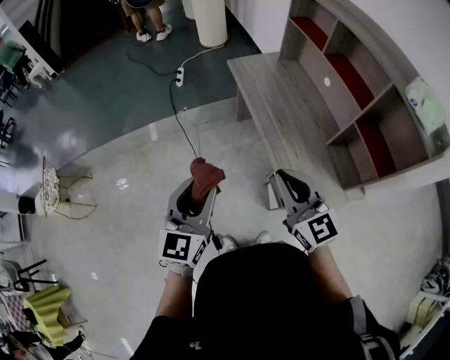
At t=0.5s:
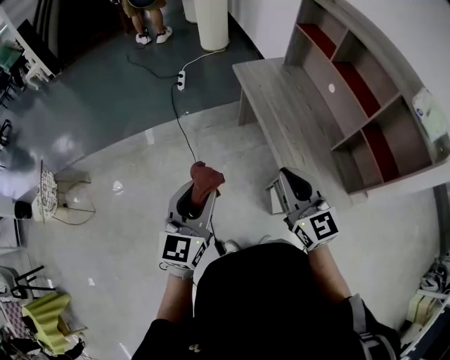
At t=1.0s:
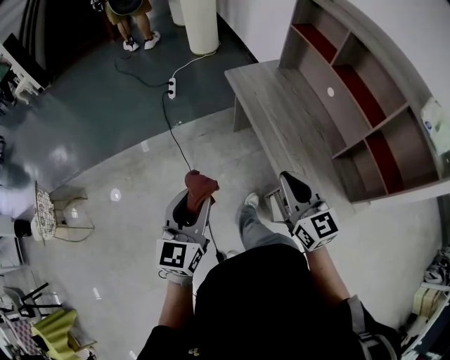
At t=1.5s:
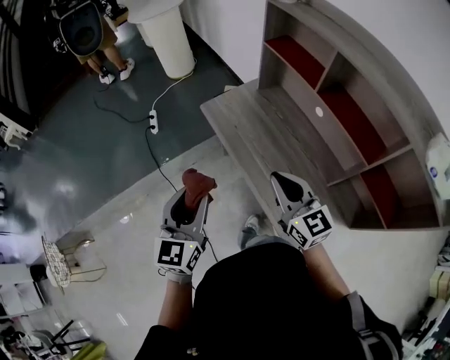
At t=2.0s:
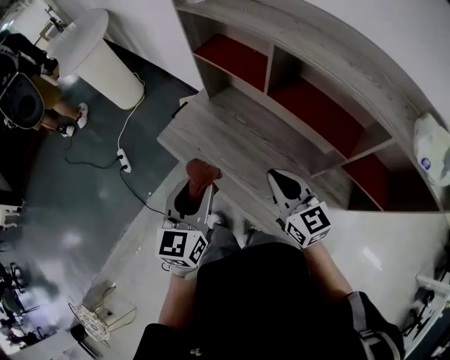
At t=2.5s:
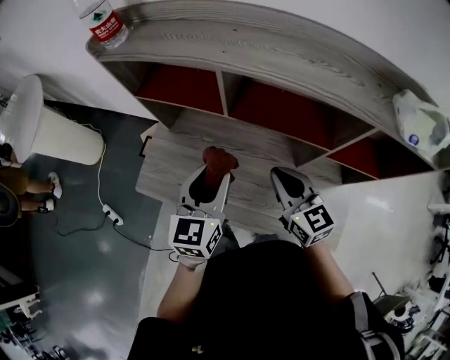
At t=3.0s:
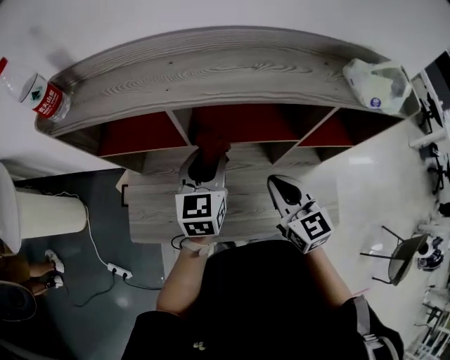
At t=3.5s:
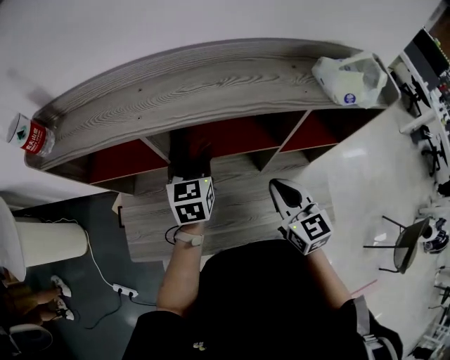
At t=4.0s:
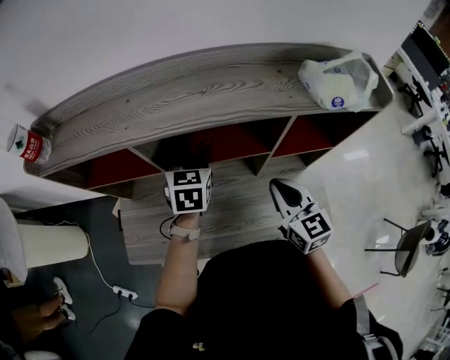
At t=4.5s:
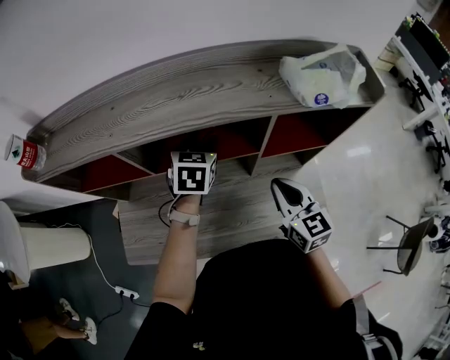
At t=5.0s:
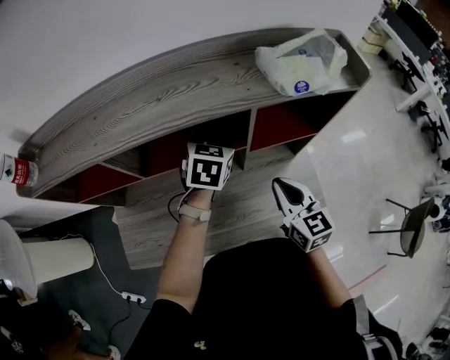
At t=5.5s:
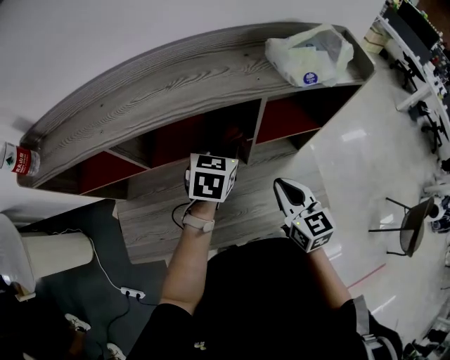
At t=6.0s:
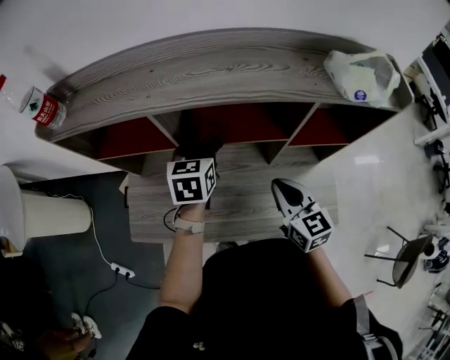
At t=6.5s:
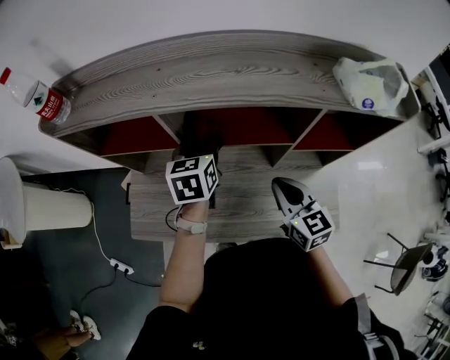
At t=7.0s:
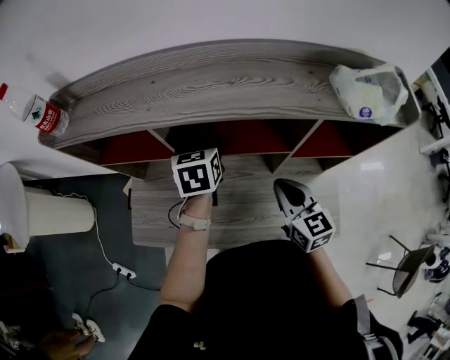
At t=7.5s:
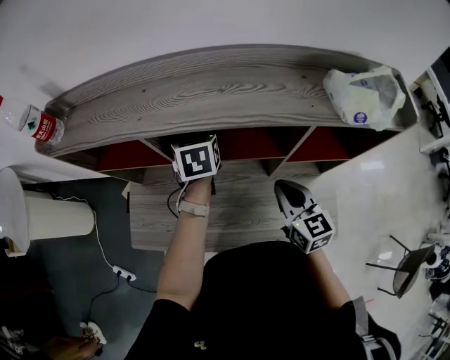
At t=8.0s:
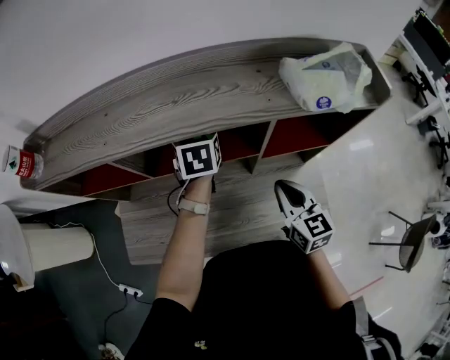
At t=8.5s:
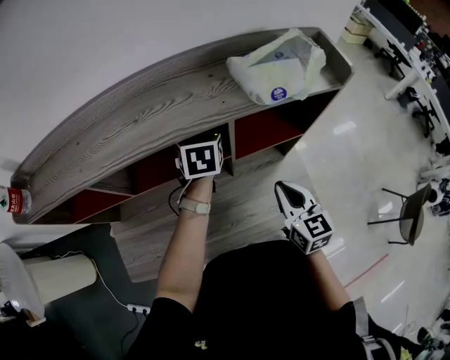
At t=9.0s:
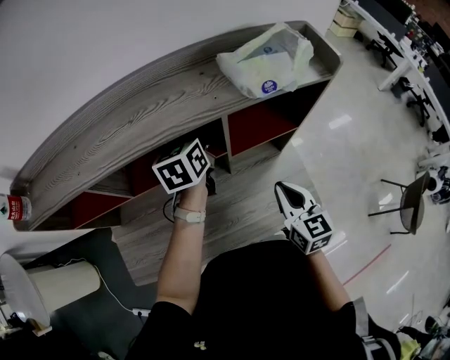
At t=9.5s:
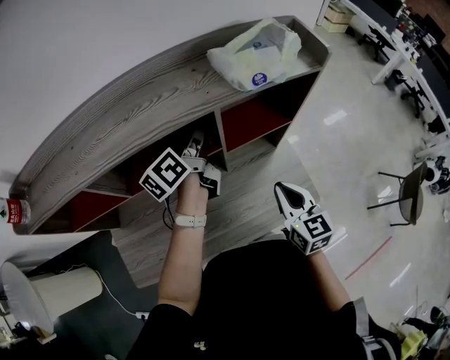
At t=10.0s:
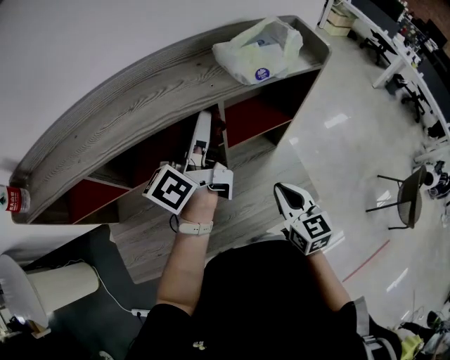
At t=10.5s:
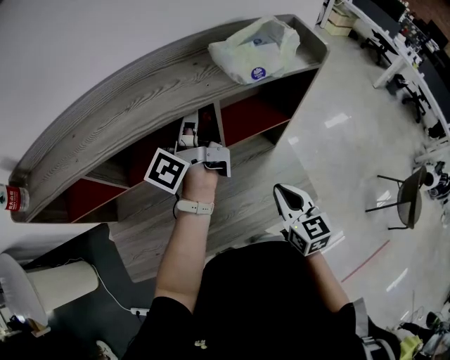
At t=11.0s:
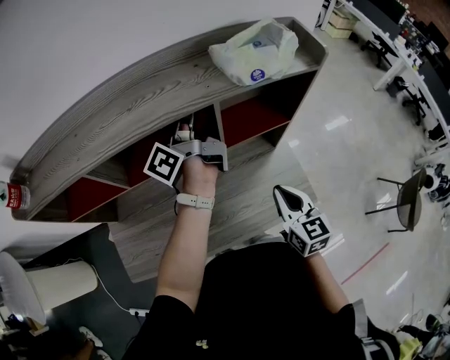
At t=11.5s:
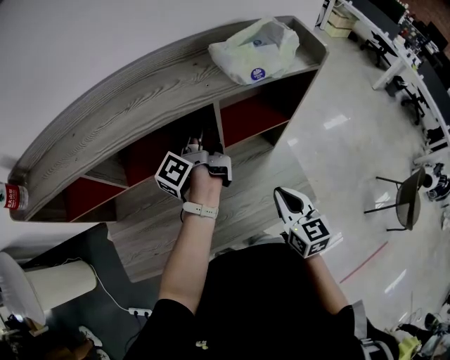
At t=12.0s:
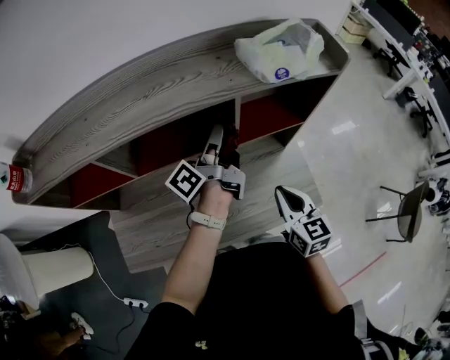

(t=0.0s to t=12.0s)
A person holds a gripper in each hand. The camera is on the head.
t=0.0s - t=2.0s: The left gripper shifts by about 50 cm, and changes its angle by about 30 degrees, while the right gripper changes place by approximately 40 cm, and rotates roughly 30 degrees.
t=2.0s - t=4.0s: The right gripper ends up approximately 15 cm from where it was, and changes its angle by about 50 degrees; the left gripper ends up some 35 cm from where it was, and swivels about 50 degrees.
t=4.0s - t=6.0s: The left gripper goes to the right and returns, approximately 15 cm each way; the right gripper reaches approximately 5 cm to the right, then returns.
t=6.0s - t=8.0s: The right gripper moves to the right, some 10 cm; the left gripper heads to the right and forward, covering about 15 cm.
t=8.0s - t=10.0s: The left gripper is displaced upward, to the right and backward by approximately 20 cm, and tilts its fingers roughly 60 degrees upward; the right gripper moves backward and to the right, approximately 10 cm.
t=10.0s - t=12.0s: The left gripper shifts some 10 cm downward, and turns by about 30 degrees.

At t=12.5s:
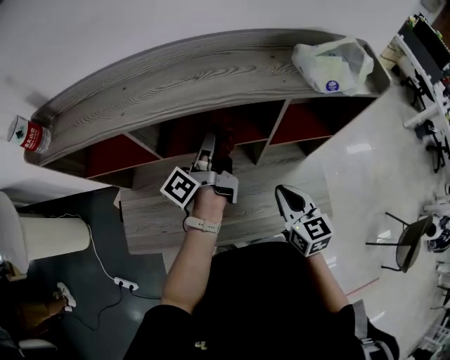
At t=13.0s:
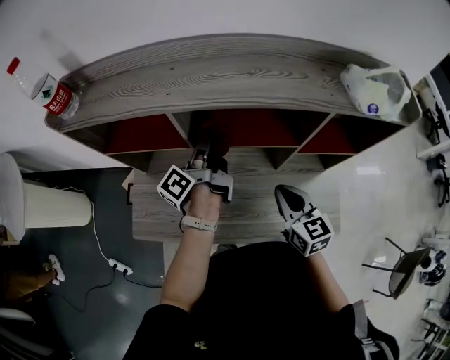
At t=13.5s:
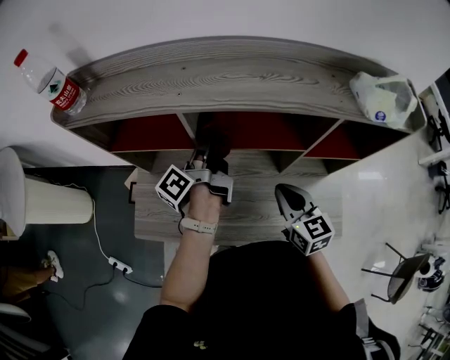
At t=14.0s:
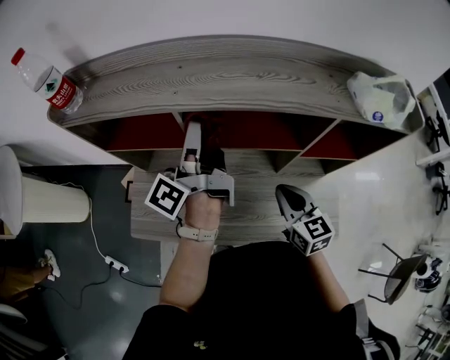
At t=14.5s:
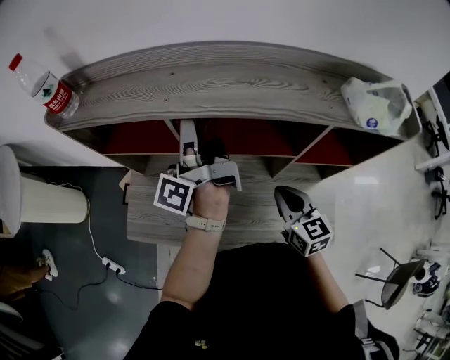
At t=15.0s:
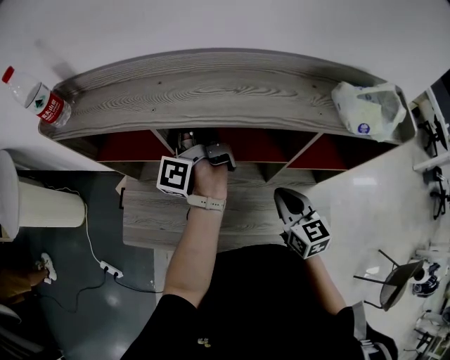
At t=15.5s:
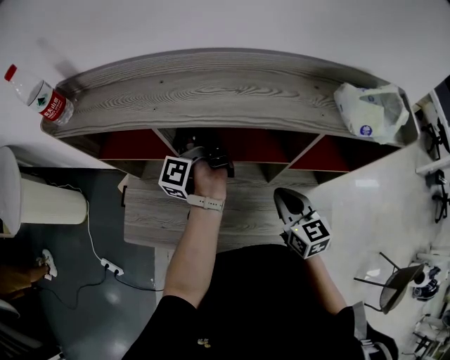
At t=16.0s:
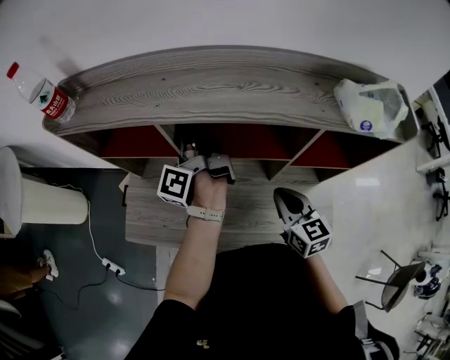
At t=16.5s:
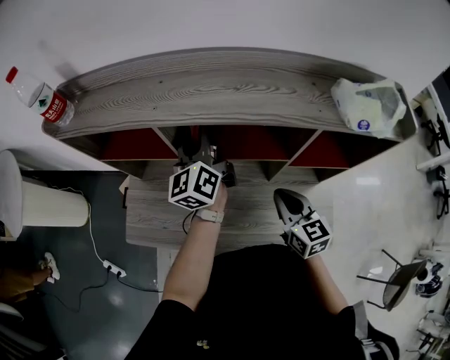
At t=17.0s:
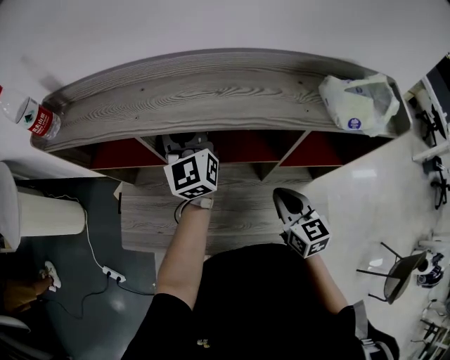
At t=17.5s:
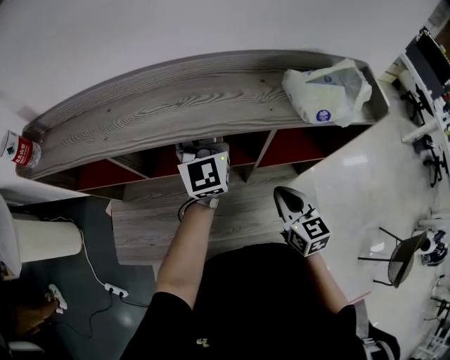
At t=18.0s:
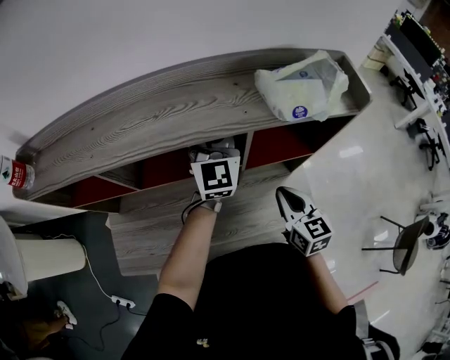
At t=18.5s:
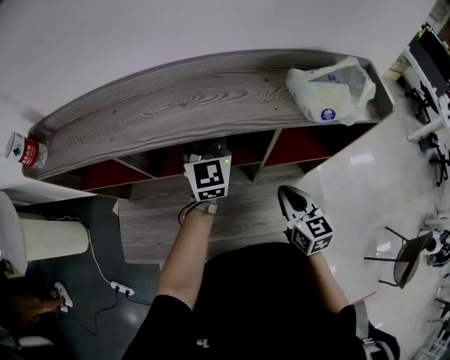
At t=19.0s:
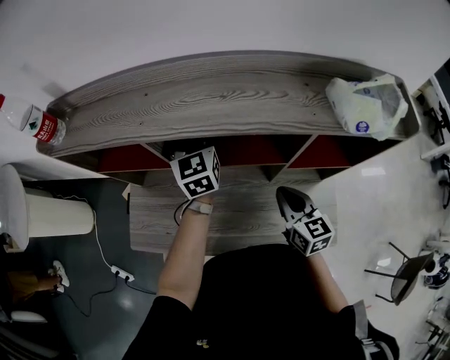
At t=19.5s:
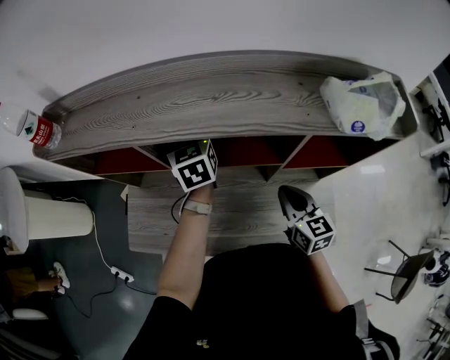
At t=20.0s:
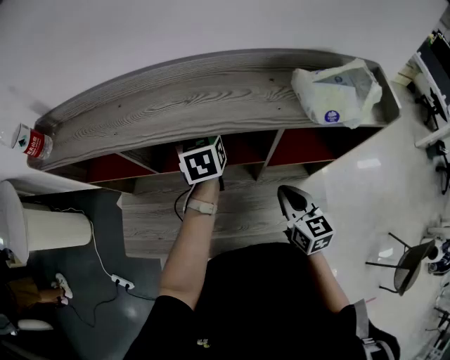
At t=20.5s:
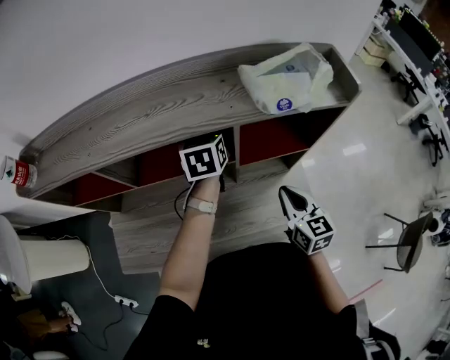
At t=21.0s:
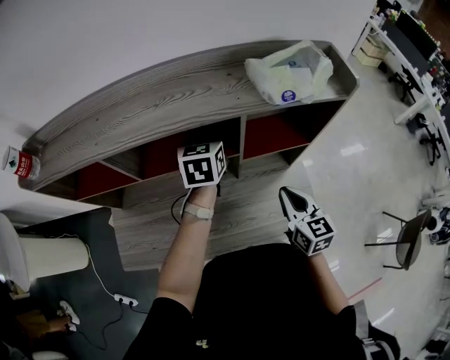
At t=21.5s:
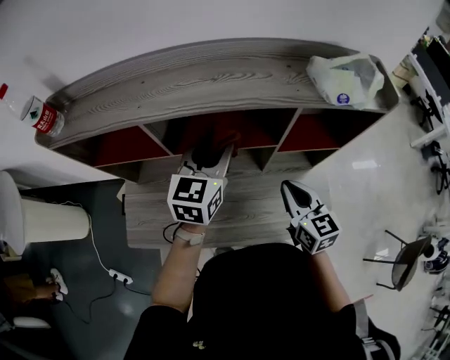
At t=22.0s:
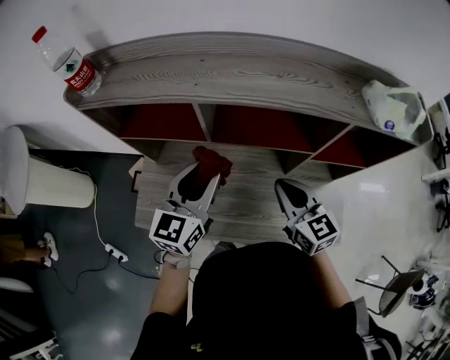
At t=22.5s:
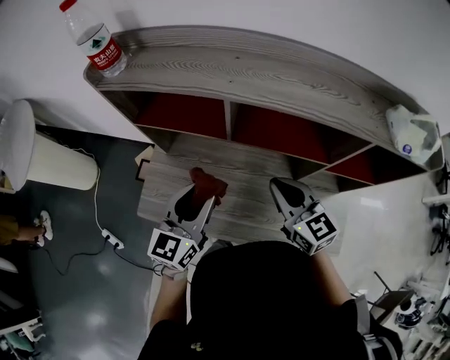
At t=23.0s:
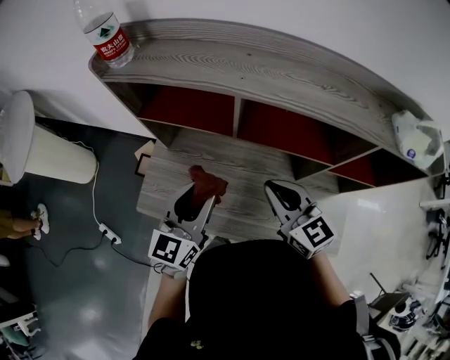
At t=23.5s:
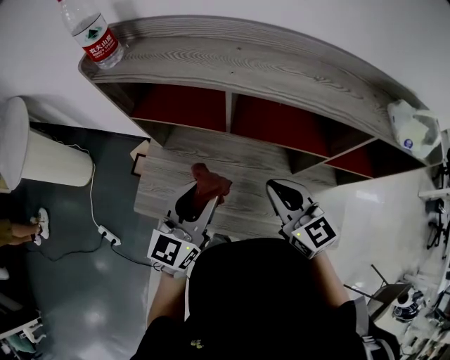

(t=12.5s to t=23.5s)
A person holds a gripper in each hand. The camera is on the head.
t=12.5s - t=14.5s: The left gripper heads to the left and upward, covering about 15 cm, and swivels roughly 30 degrees. The right gripper heads forward, covering approximately 5 cm.
t=14.5s - t=16.0s: The left gripper goes about 10 cm downward.
t=16.0s - t=18.0s: The right gripper moves some 15 cm. Meanwhile the left gripper changes place by roughly 25 cm, and rotates around the line of its fingers by roughly 90 degrees, clockwise from behind.
t=18.0s - t=20.0s: The left gripper shifts some 15 cm to the left and downward, and tips its fingers downward by roughly 40 degrees.
t=20.0s - t=21.5s: The right gripper goes to the right and returns, roughly 5 cm each way; the left gripper travels backward and upward by about 15 cm, and changes its angle by about 30 degrees.
t=21.5s - t=23.5s: The right gripper goes about 20 cm to the left, and turns by about 30 degrees; the left gripper moves to the left and backward, about 25 cm.

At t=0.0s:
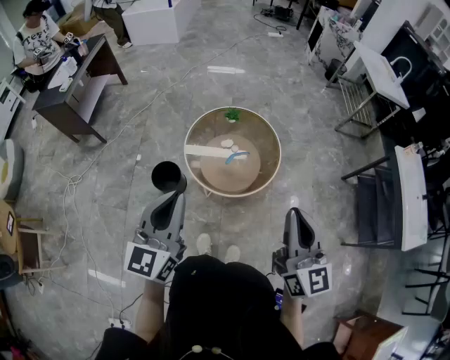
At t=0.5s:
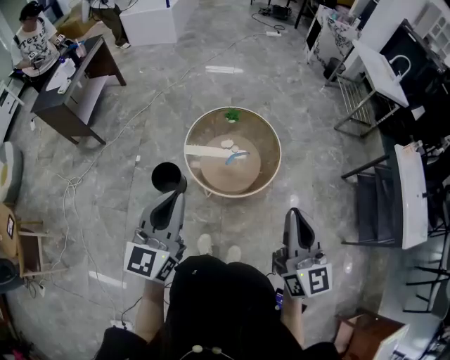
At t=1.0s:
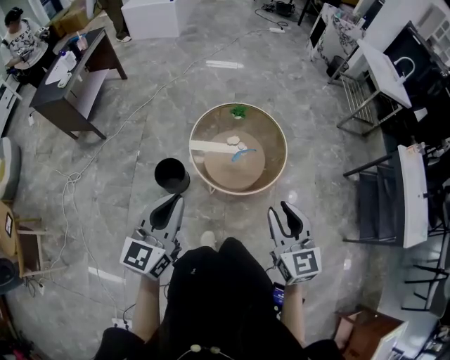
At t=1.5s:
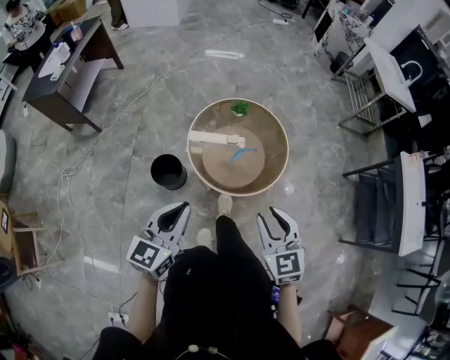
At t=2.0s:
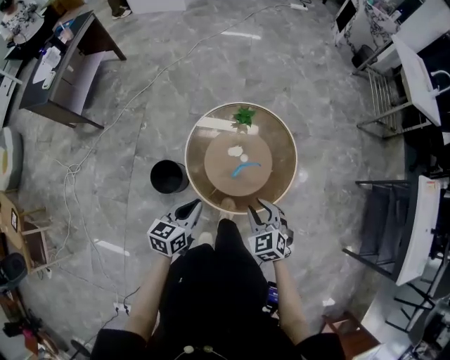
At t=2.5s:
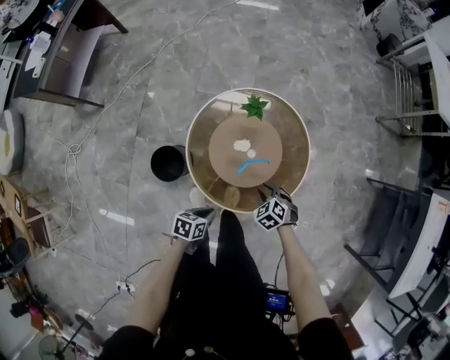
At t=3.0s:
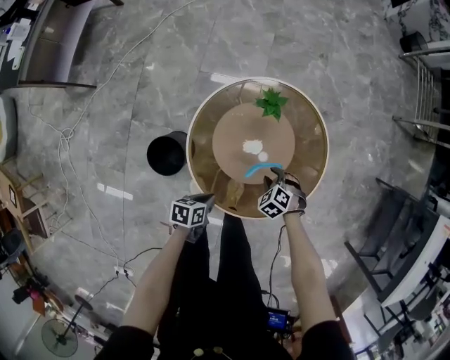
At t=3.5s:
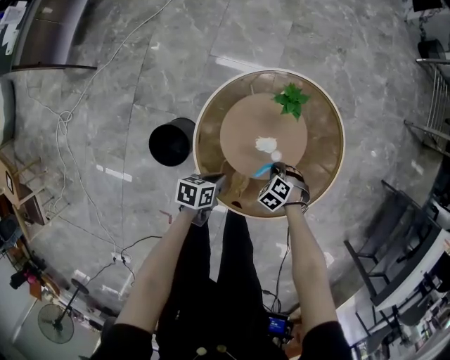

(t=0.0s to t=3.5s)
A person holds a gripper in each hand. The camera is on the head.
t=0.0s - t=2.0s: The grippers both shift downward and forward by roughly 35 cm. The left gripper turns by approximately 40 degrees, while the right gripper points its fingers approximately 50 degrees further downward, and opens up.
t=2.0s - t=3.5s: The two grippers go some 30 cm downward. The right gripper tilts its fingers roughly 40 degrees downward, and closes, while the left gripper turns by roughly 40 degrees.
